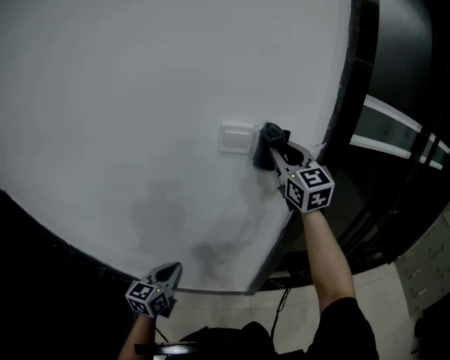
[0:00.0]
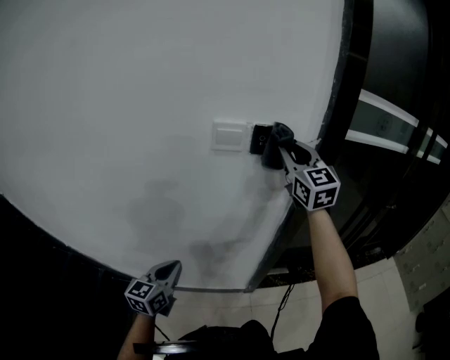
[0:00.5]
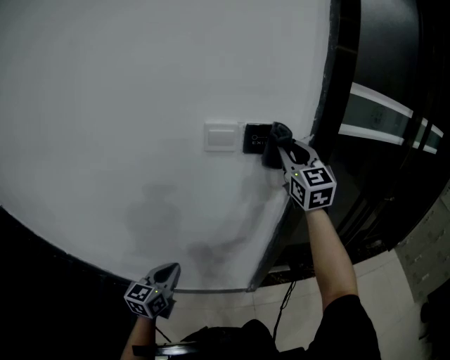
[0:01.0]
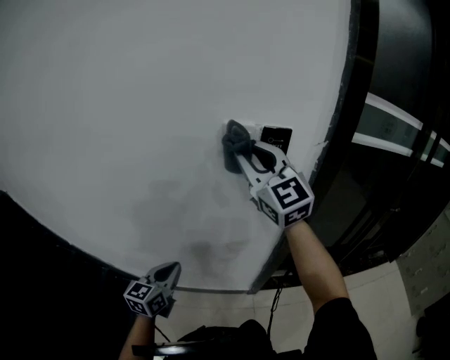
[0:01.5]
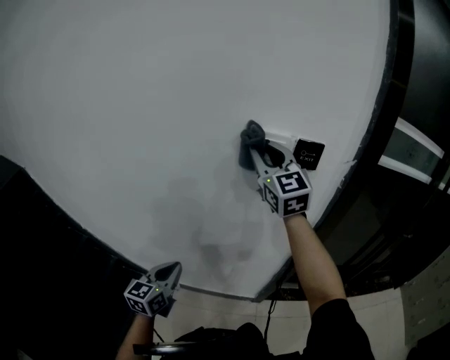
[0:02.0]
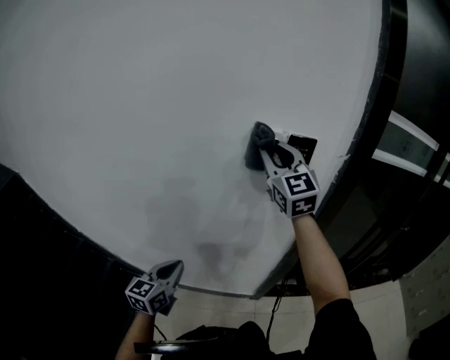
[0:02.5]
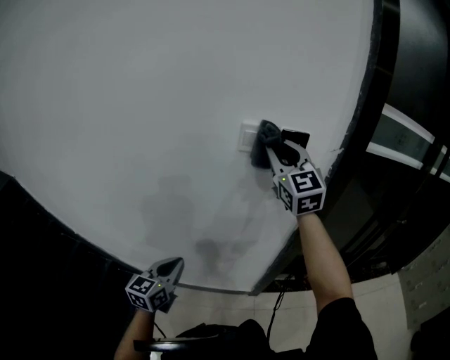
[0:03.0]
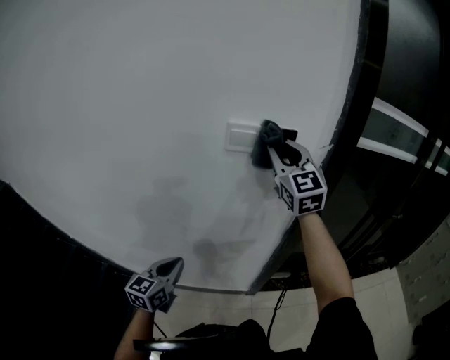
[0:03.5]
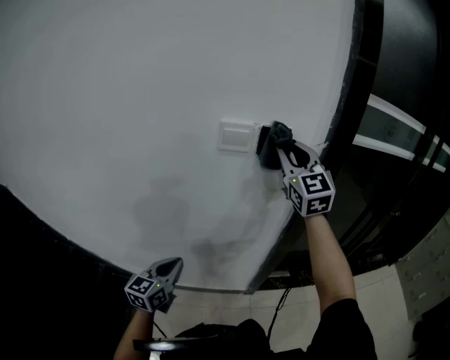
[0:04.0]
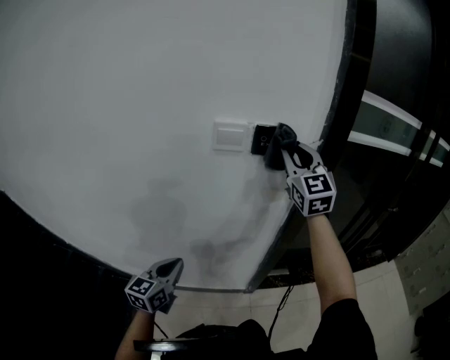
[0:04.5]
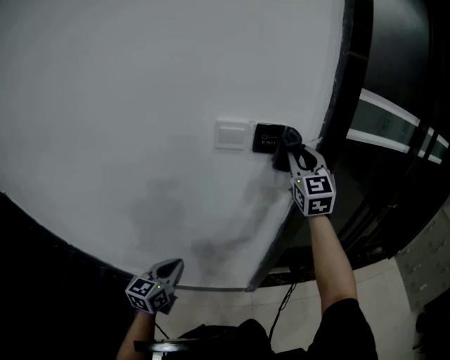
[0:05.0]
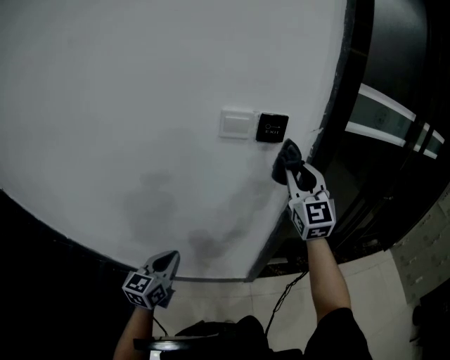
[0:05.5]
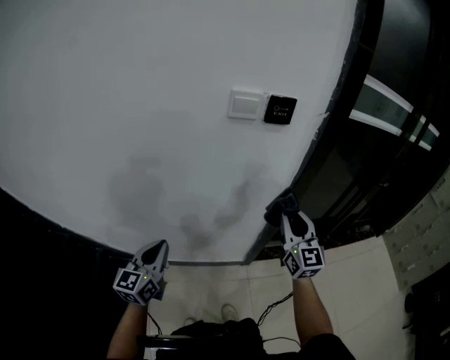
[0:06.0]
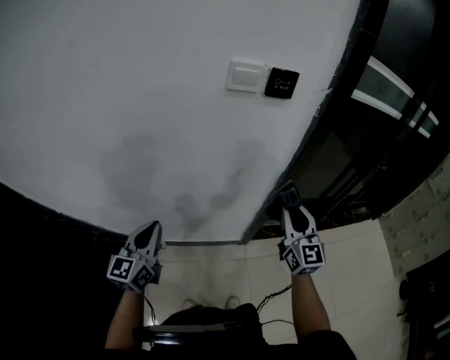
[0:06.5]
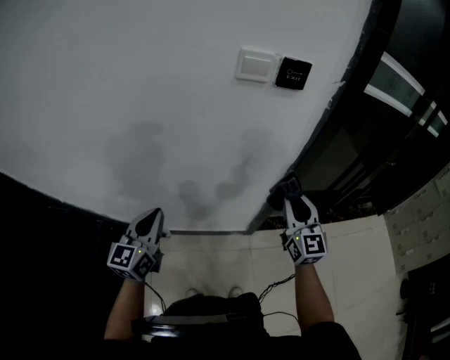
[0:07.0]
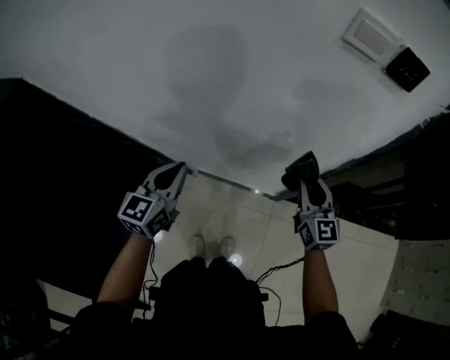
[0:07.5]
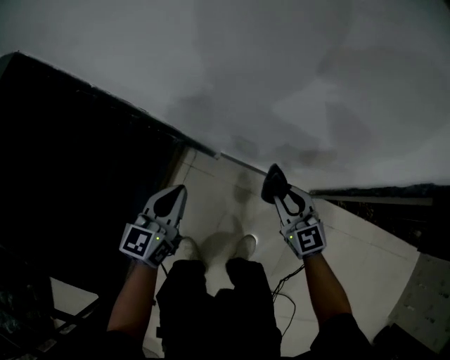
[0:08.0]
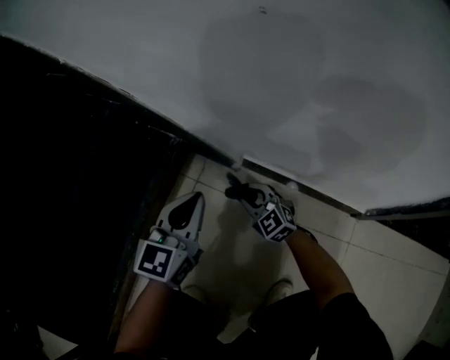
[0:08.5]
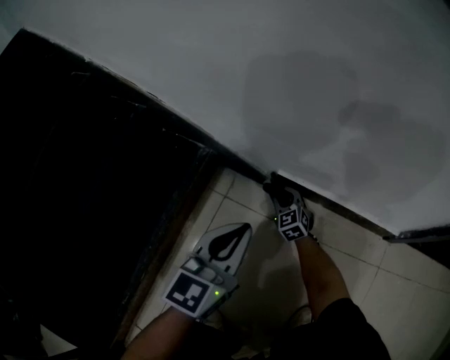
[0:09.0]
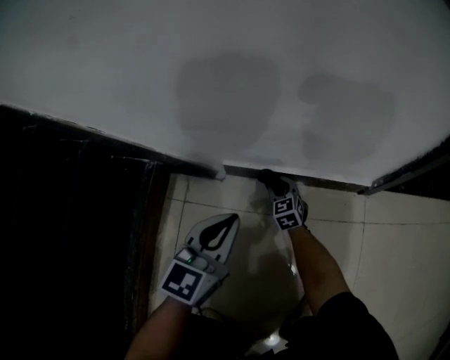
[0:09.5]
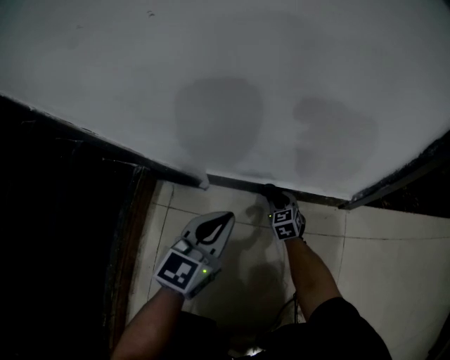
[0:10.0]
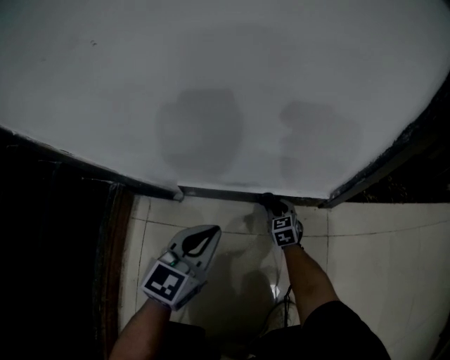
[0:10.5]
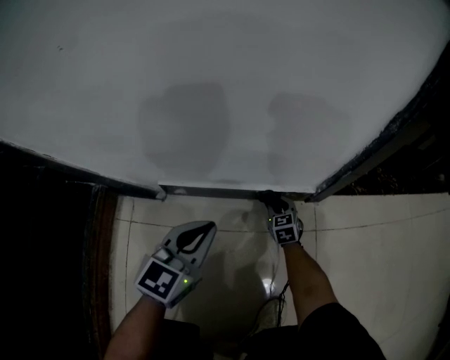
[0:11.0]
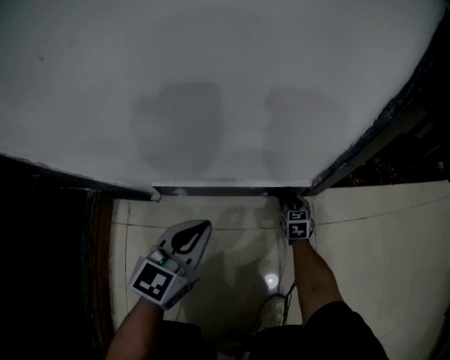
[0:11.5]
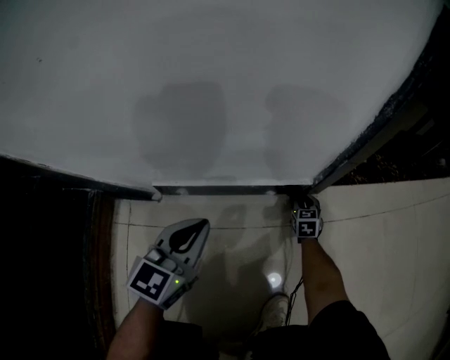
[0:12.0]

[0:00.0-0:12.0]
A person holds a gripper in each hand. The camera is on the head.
0:00.0 to 0:02.0: The left gripper is displaced to the left by approximately 5 cm, while the right gripper is displaced to the left by roughly 15 cm.
0:02.0 to 0:04.0: The right gripper moves to the right, about 15 cm, while the left gripper travels to the right by approximately 5 cm.
0:04.0 to 0:06.0: The right gripper moves downward and backward, some 25 cm. The left gripper heads to the left and backward, covering some 10 cm.
0:06.0 to 0:08.0: The right gripper travels downward by about 40 cm, and turns by approximately 50 degrees. Meanwhile the left gripper heads downward, covering about 25 cm, and rotates roughly 30 degrees.
0:08.0 to 0:10.0: The left gripper travels downward by about 35 cm, and turns by roughly 30 degrees; the right gripper travels downward by some 60 cm, and rotates roughly 30 degrees.
0:10.0 to 0:12.0: The left gripper is displaced to the right by approximately 10 cm; the right gripper heads to the right, covering roughly 30 cm, and rotates approximately 30 degrees.

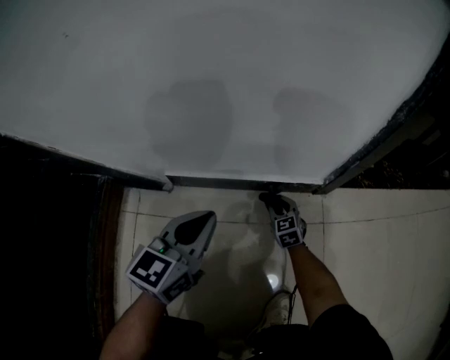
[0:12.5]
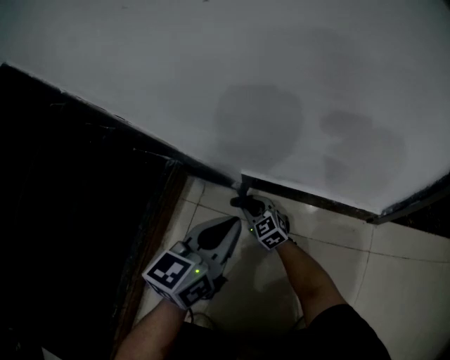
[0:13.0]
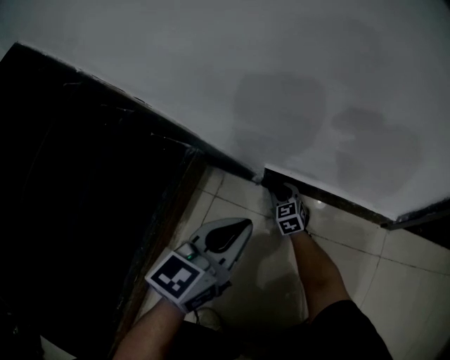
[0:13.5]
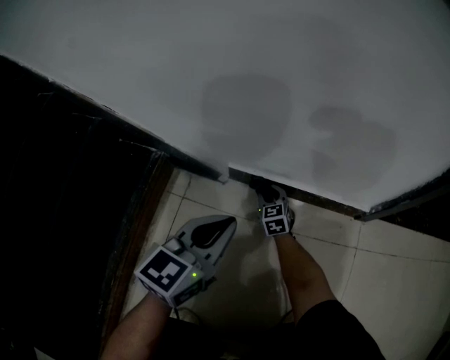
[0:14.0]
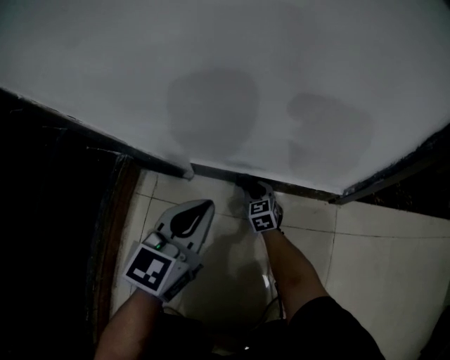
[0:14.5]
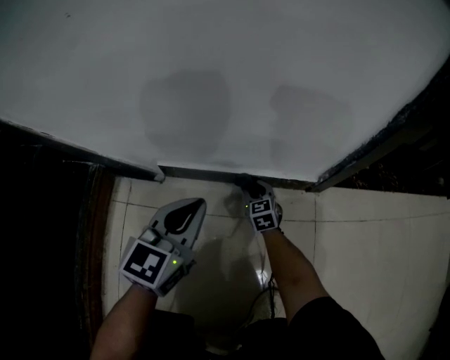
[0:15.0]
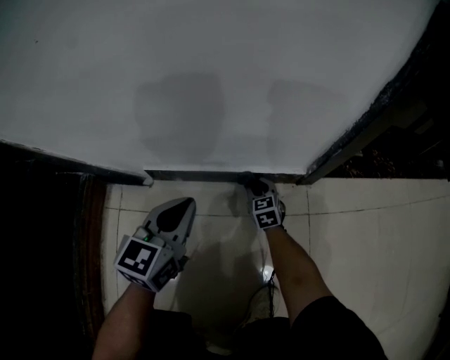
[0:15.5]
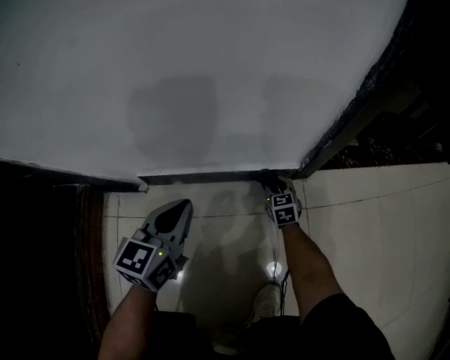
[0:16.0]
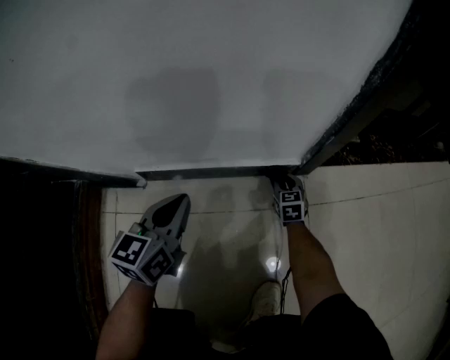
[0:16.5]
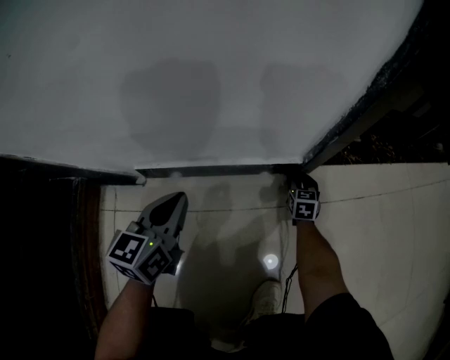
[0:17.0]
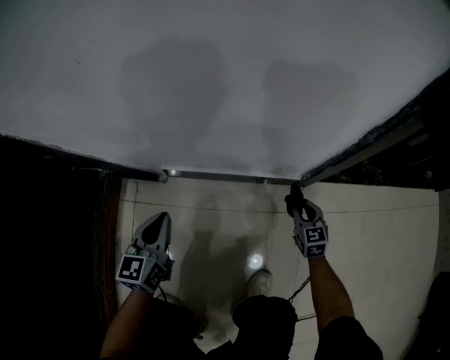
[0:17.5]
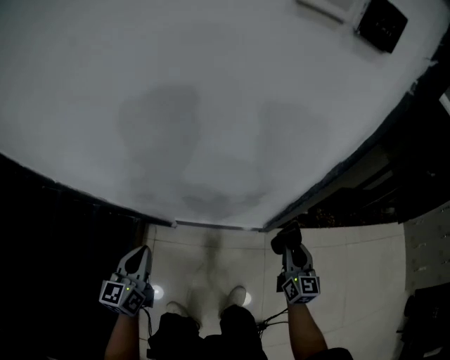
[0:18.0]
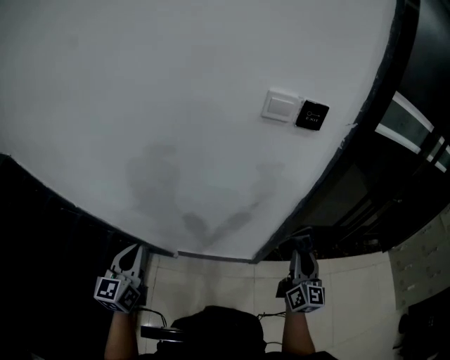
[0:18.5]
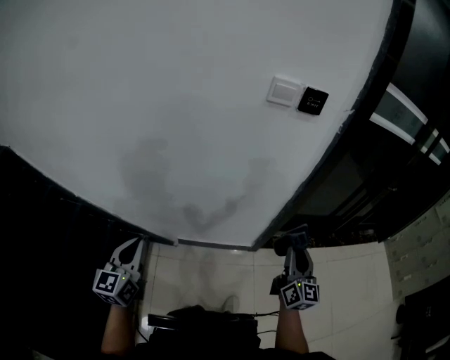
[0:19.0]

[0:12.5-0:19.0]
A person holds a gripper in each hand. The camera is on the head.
0:14.5 to 0:17.0: The left gripper heads to the right, downward and forward, covering roughly 10 cm. The right gripper travels to the right by roughly 35 cm, and rotates about 40 degrees.
0:17.0 to 0:19.0: Both grippers move upward, about 80 cm. The left gripper changes its angle by roughly 20 degrees; the right gripper points its fingers about 40 degrees further upward.

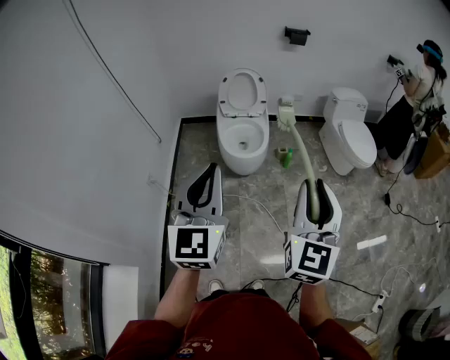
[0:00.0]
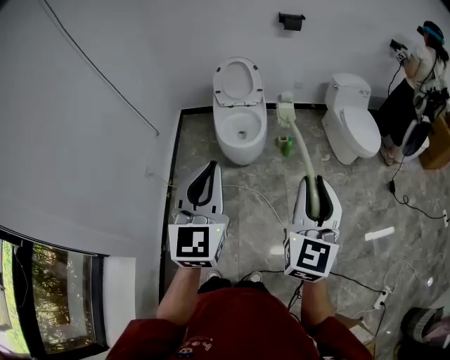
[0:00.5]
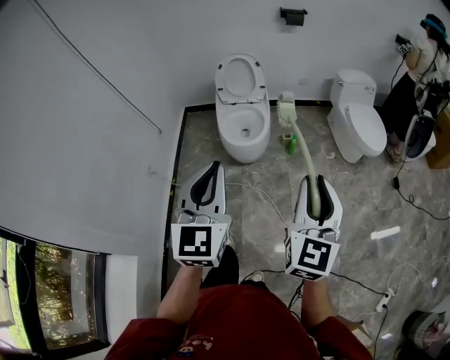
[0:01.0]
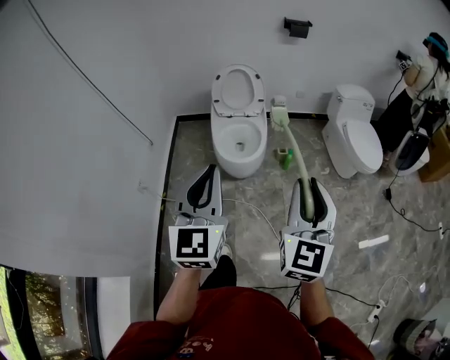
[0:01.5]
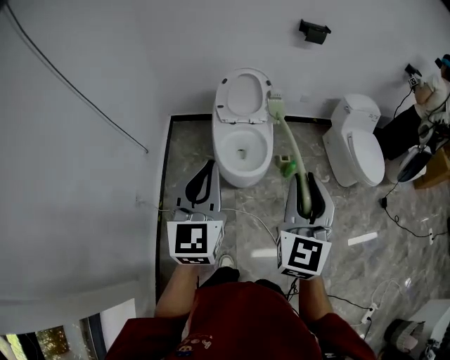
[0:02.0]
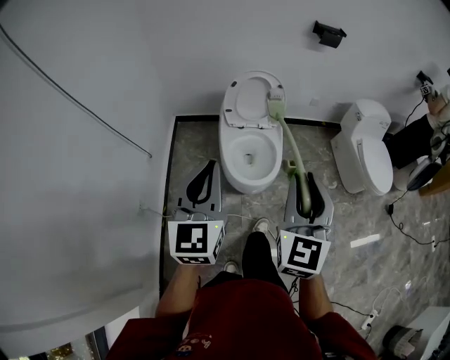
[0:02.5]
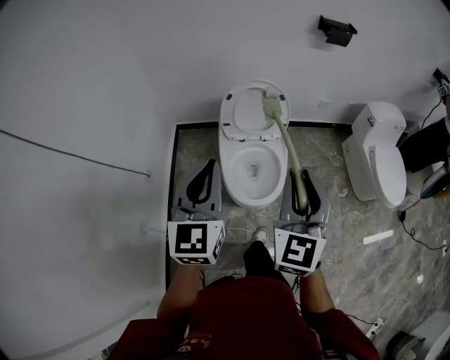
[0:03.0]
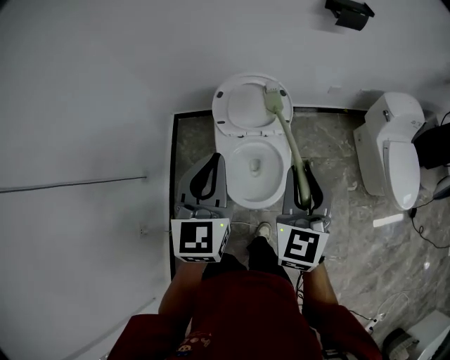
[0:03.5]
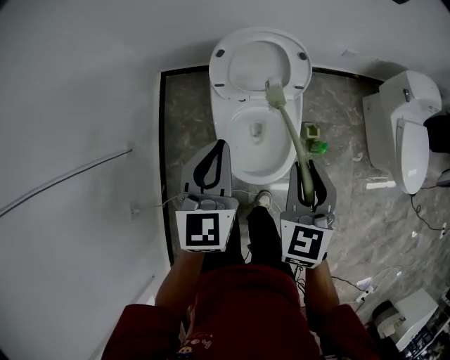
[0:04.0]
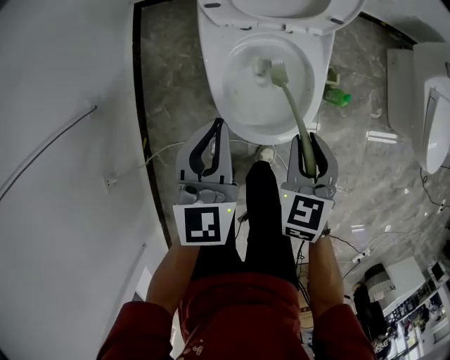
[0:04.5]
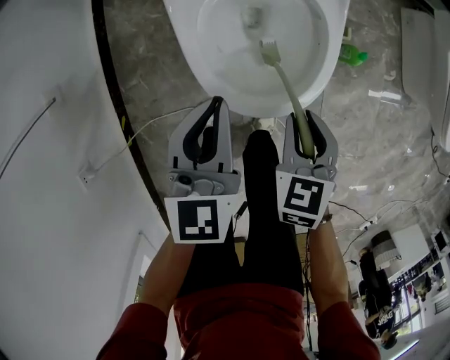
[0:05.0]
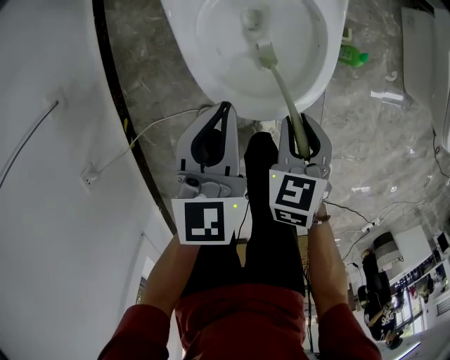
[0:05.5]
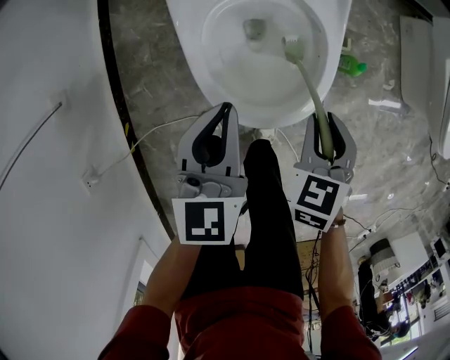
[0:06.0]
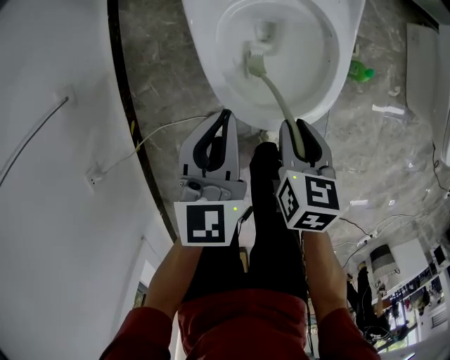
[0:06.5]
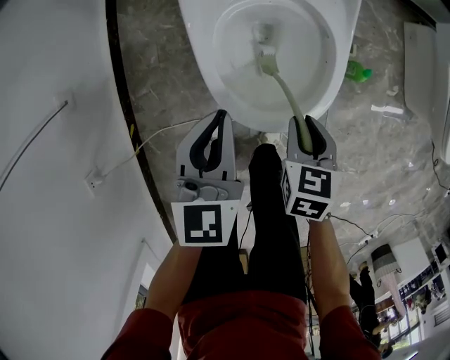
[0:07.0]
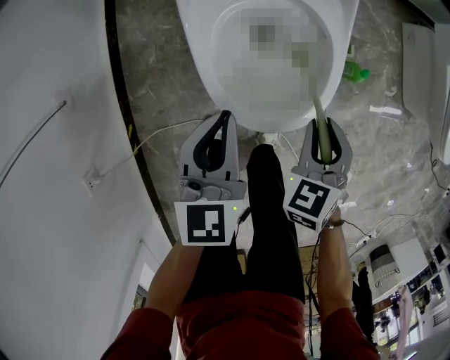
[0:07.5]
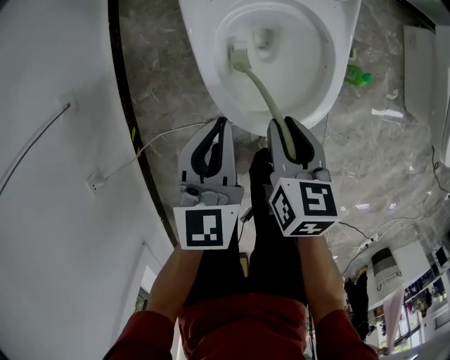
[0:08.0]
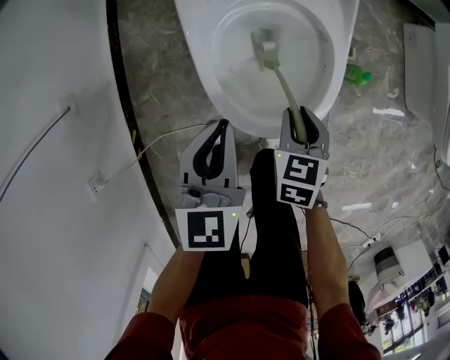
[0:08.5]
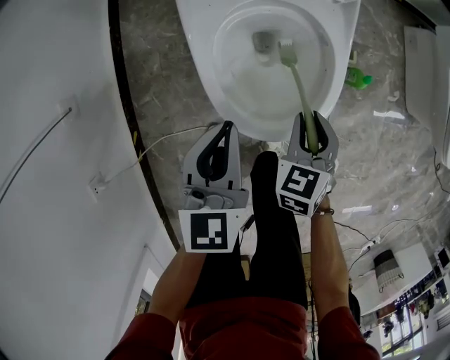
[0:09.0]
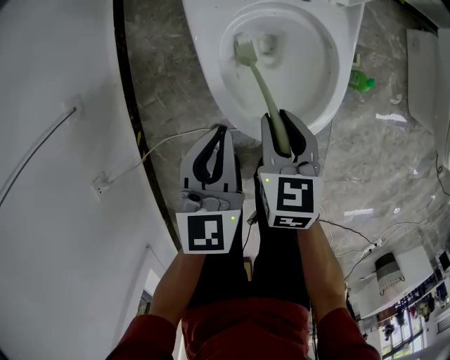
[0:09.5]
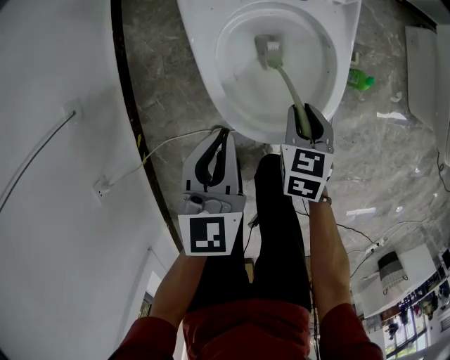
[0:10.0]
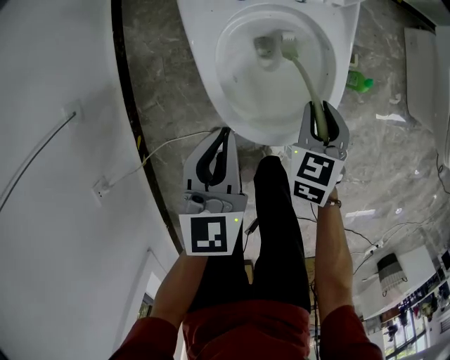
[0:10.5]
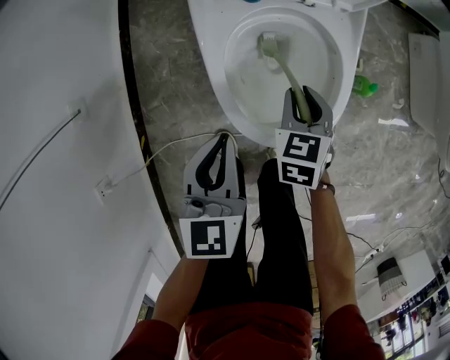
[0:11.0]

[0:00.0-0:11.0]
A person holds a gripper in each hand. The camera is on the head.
0:00.0 to 0:02.0: The two grippers go some 25 cm forward.
0:02.0 to 0:03.5: Both grippers travel together forward, some 35 cm.
0:03.5 to 0:05.5: The grippers both shift downward by roughly 50 cm. The left gripper rotates approximately 20 degrees. Meanwhile the right gripper tips its fingers downward by roughly 50 degrees.
0:07.5 to 0:09.0: The right gripper travels to the left and back again, roughly 10 cm each way.
0:09.0 to 0:11.0: The right gripper moves left and right over roughly 10 cm, changing direction 2 times.
